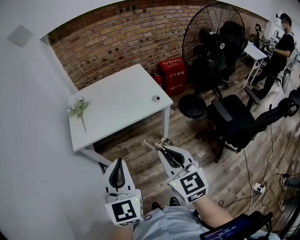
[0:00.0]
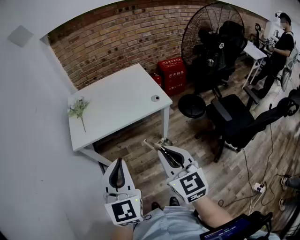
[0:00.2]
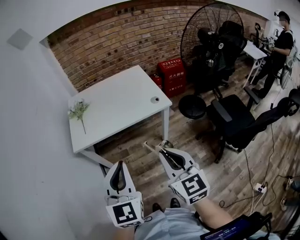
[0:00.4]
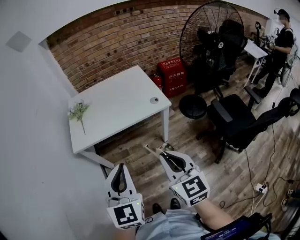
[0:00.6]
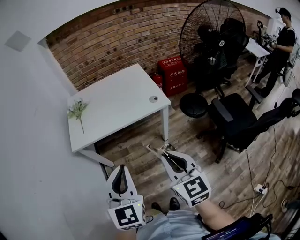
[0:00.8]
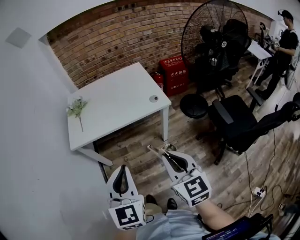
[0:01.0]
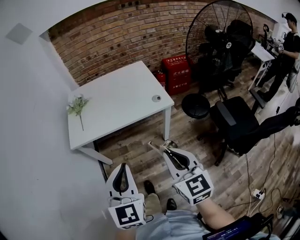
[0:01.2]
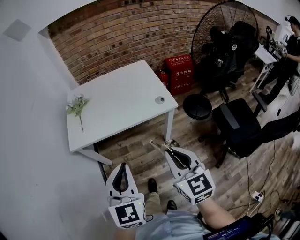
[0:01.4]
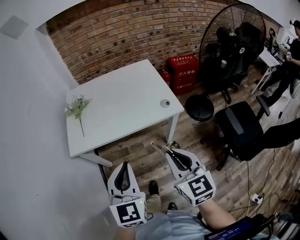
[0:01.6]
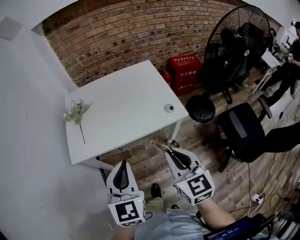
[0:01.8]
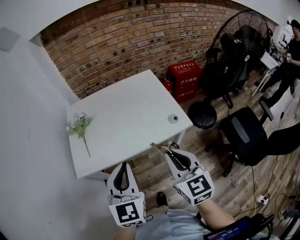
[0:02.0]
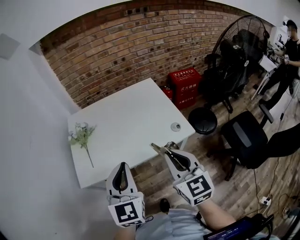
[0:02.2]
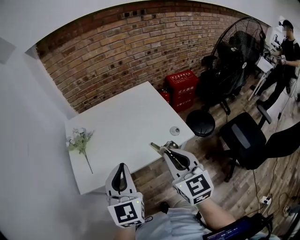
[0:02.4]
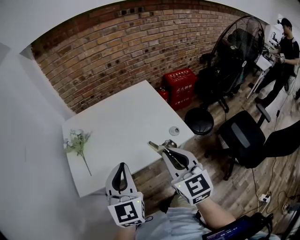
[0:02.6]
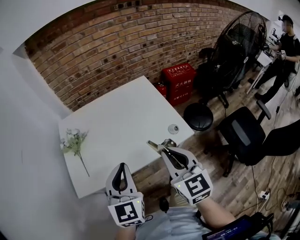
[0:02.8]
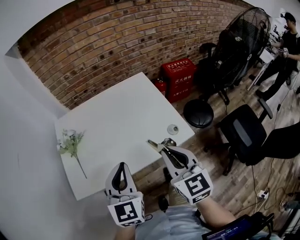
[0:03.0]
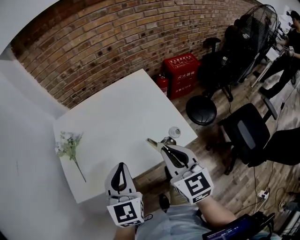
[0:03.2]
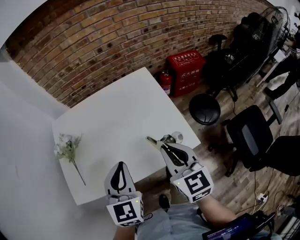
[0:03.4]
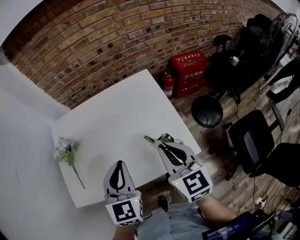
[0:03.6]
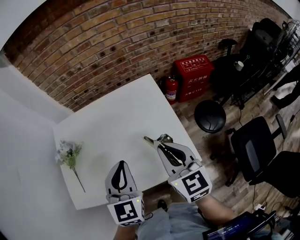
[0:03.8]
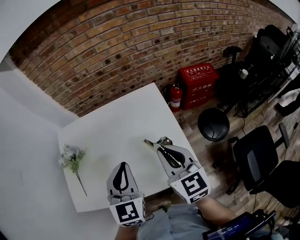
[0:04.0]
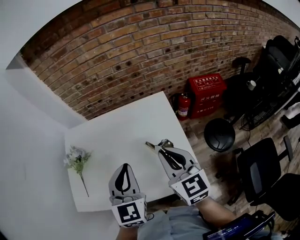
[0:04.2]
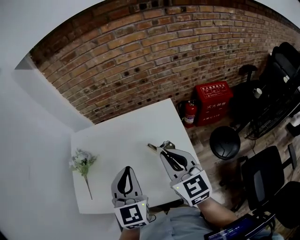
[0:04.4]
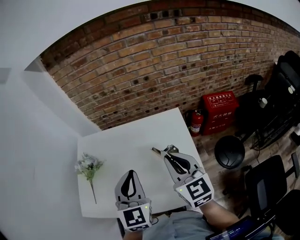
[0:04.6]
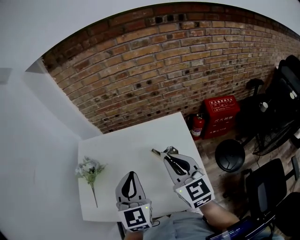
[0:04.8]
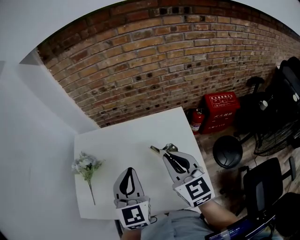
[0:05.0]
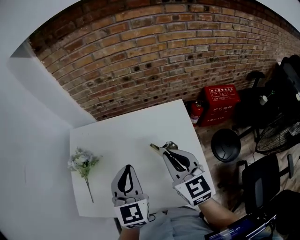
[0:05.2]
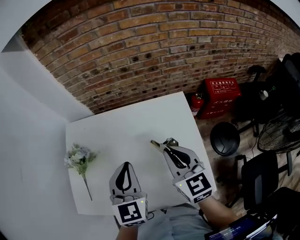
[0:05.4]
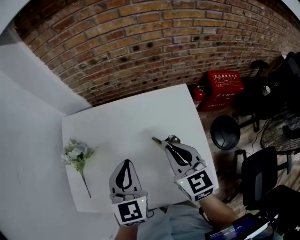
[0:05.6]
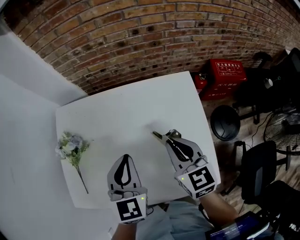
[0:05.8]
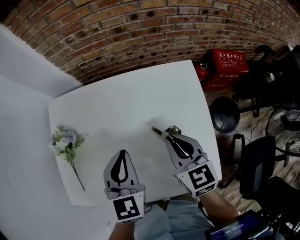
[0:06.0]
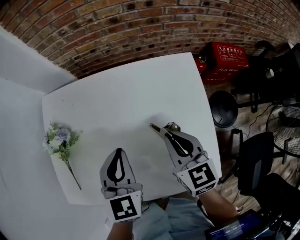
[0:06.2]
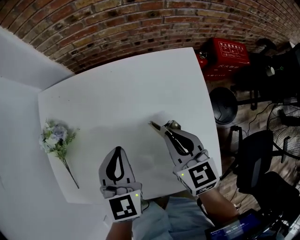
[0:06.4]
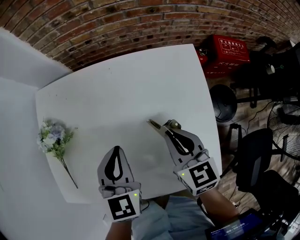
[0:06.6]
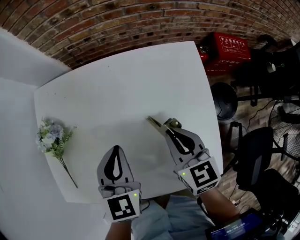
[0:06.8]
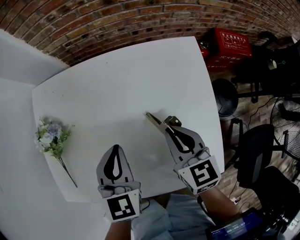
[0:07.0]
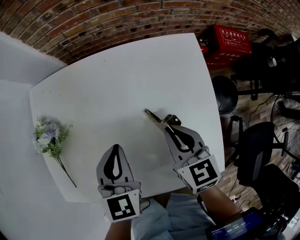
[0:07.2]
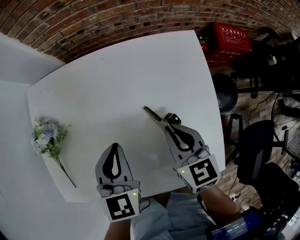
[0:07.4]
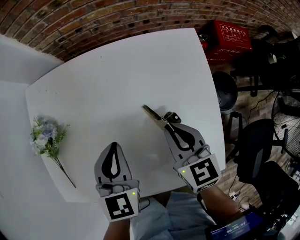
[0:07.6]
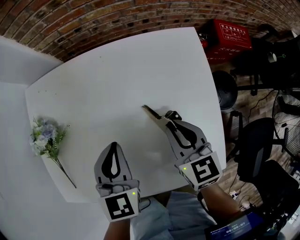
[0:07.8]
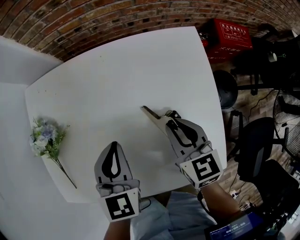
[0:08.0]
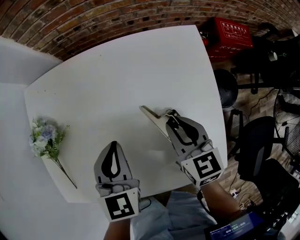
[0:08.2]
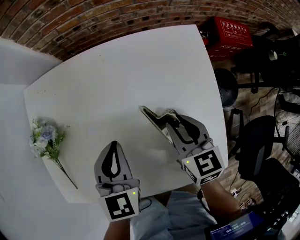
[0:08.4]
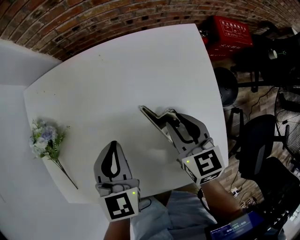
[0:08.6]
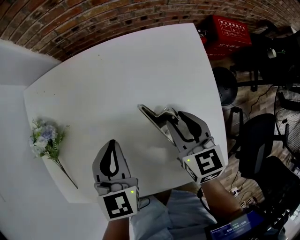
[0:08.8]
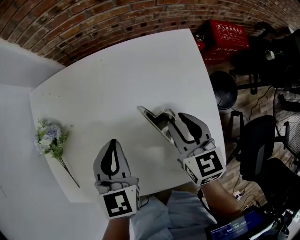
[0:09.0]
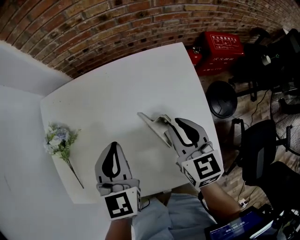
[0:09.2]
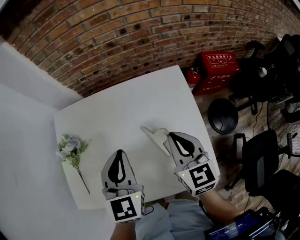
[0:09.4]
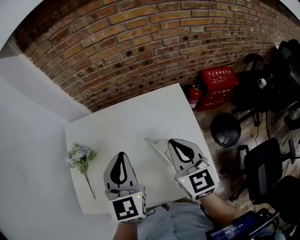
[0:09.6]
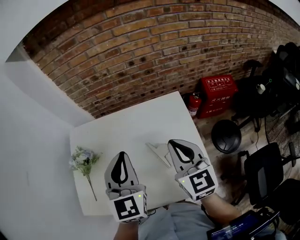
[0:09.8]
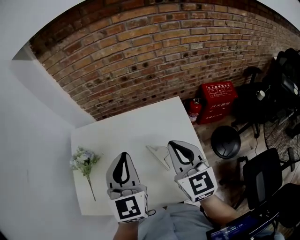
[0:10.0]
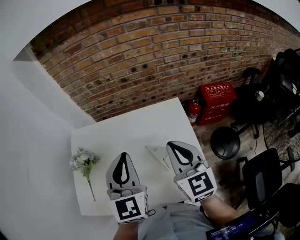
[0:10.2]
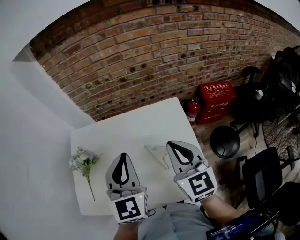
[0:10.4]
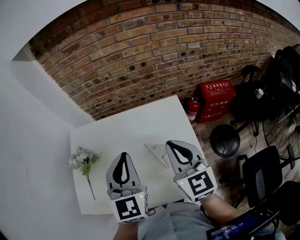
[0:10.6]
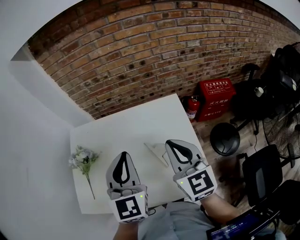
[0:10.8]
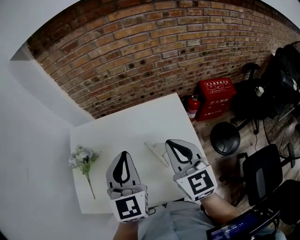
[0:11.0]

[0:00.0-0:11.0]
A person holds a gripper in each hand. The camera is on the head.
0:00.0 to 0:01.6: The right gripper travels forward by approximately 10 cm. The left gripper goes about 10 cm forward and downward.
0:01.6 to 0:03.2: The grippers both shift forward by roughly 25 cm.
0:03.2 to 0:04.8: The grippers both shift forward by about 20 cm.
0:04.8 to 0:06.2: The left gripper heads downward and forward, covering about 15 cm, and swivels some 20 degrees, while the right gripper is displaced downward by some 20 cm, and rotates some 20 degrees.
0:06.2 to 0:07.8: The two grippers go about 5 cm downward.
0:07.8 to 0:09.4: The grippers both shift upward by approximately 10 cm. The right gripper opens, then closes once more.
0:09.4 to 0:11.0: Both grippers travel together upward, roughly 10 cm.

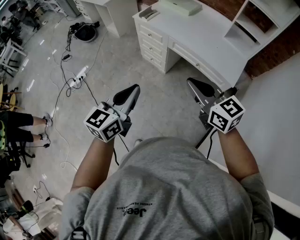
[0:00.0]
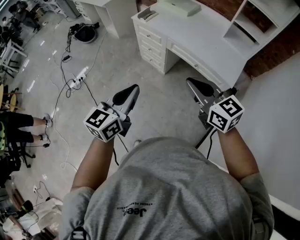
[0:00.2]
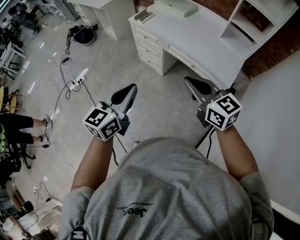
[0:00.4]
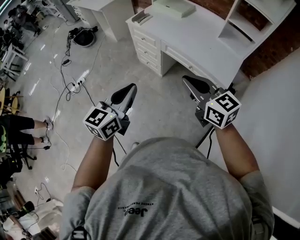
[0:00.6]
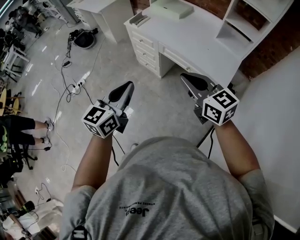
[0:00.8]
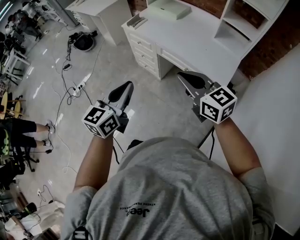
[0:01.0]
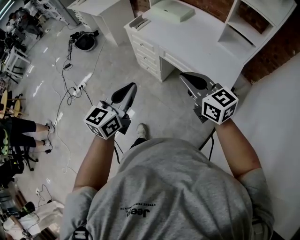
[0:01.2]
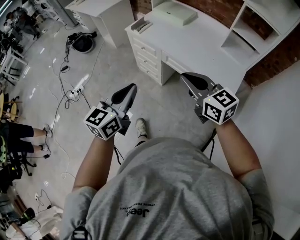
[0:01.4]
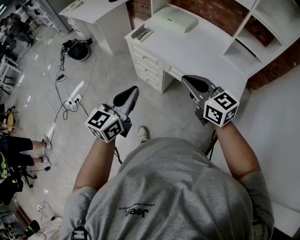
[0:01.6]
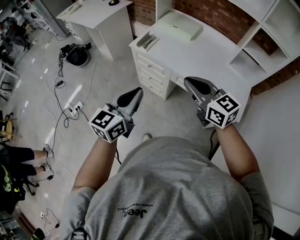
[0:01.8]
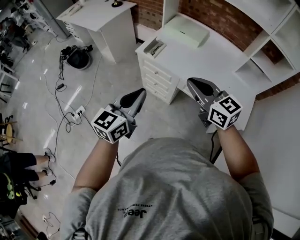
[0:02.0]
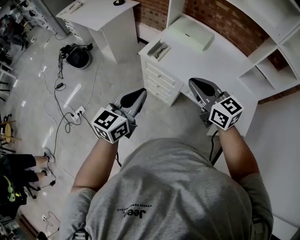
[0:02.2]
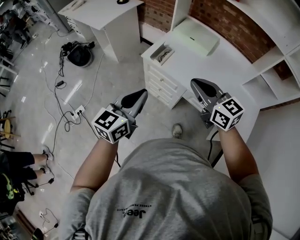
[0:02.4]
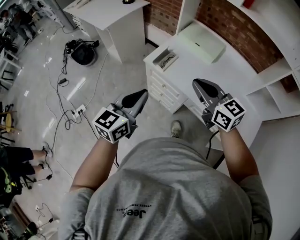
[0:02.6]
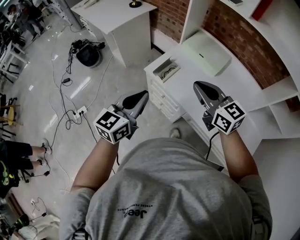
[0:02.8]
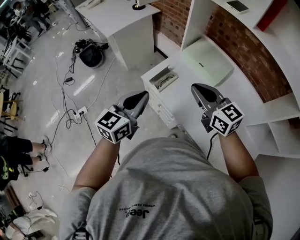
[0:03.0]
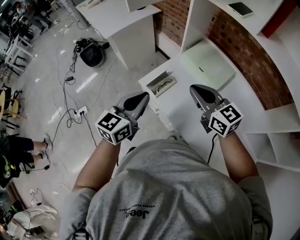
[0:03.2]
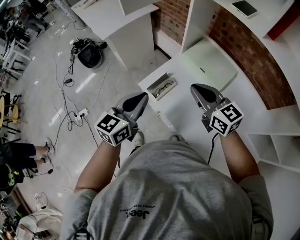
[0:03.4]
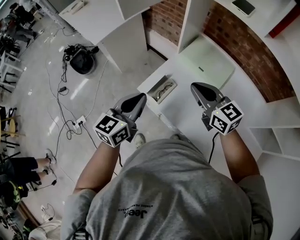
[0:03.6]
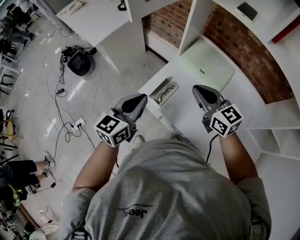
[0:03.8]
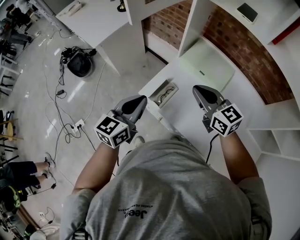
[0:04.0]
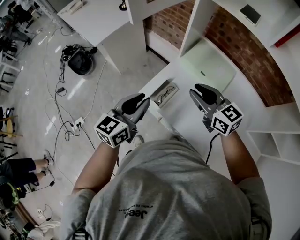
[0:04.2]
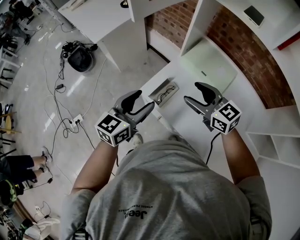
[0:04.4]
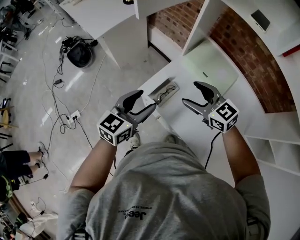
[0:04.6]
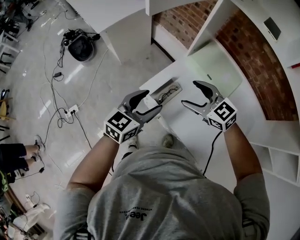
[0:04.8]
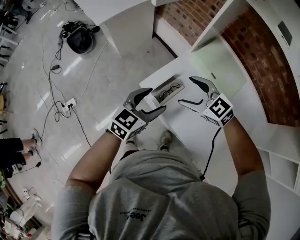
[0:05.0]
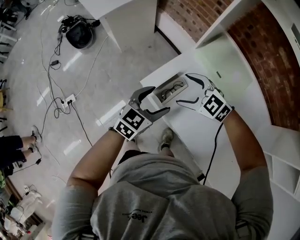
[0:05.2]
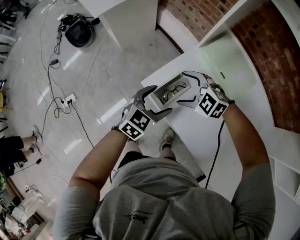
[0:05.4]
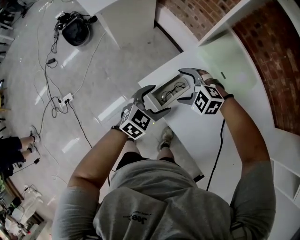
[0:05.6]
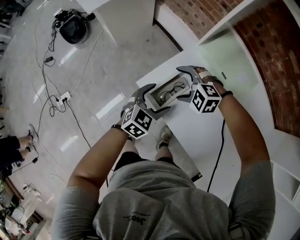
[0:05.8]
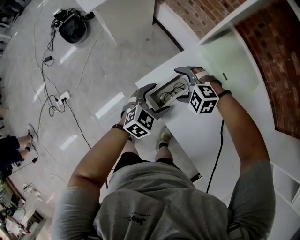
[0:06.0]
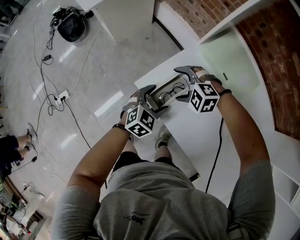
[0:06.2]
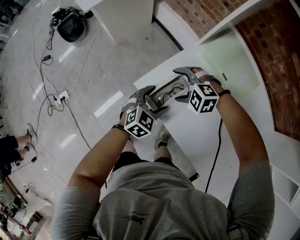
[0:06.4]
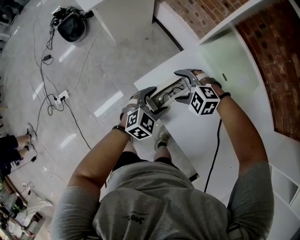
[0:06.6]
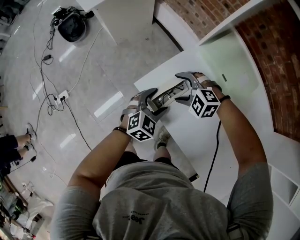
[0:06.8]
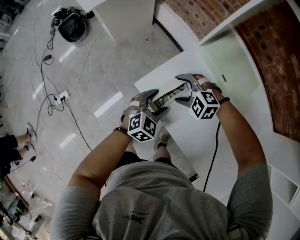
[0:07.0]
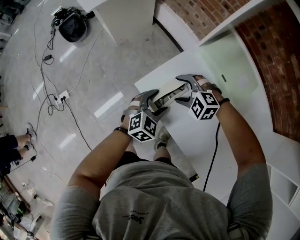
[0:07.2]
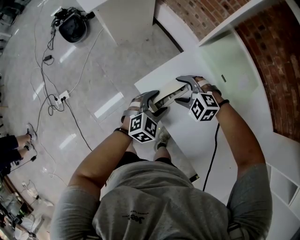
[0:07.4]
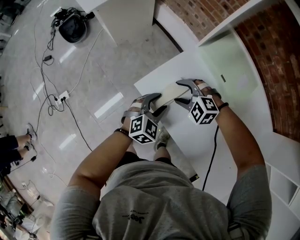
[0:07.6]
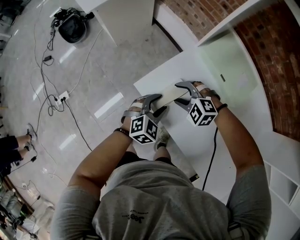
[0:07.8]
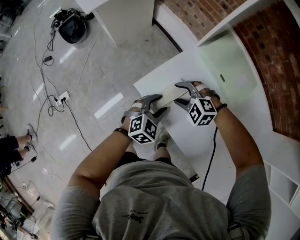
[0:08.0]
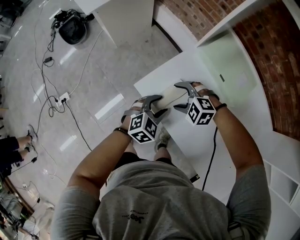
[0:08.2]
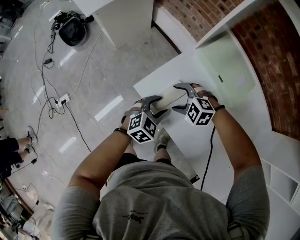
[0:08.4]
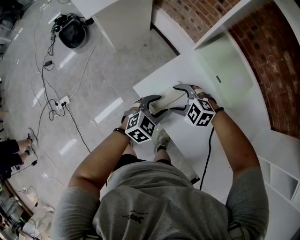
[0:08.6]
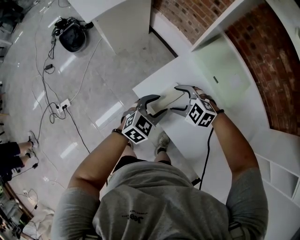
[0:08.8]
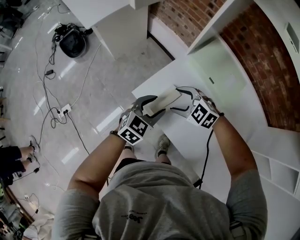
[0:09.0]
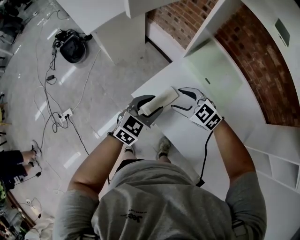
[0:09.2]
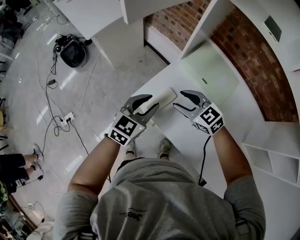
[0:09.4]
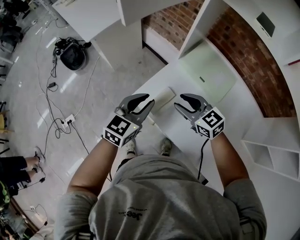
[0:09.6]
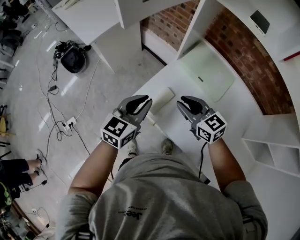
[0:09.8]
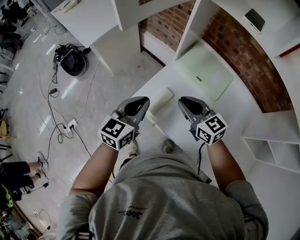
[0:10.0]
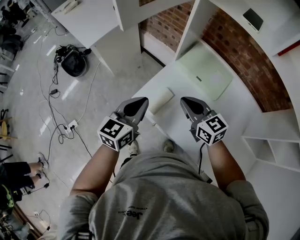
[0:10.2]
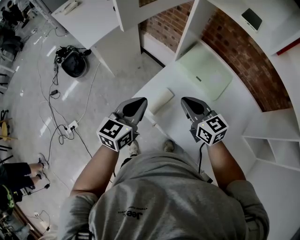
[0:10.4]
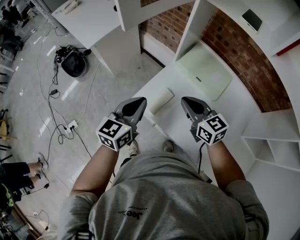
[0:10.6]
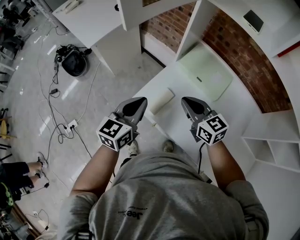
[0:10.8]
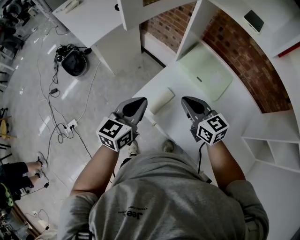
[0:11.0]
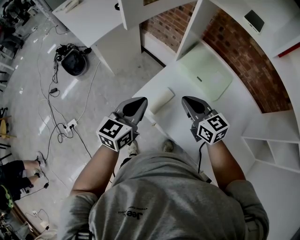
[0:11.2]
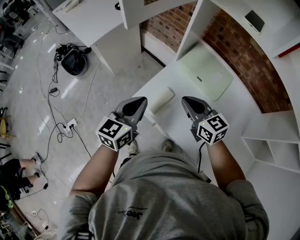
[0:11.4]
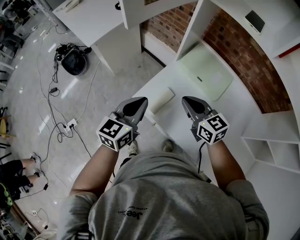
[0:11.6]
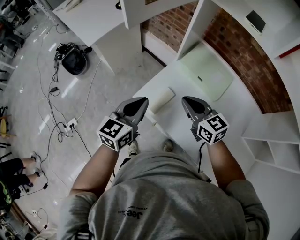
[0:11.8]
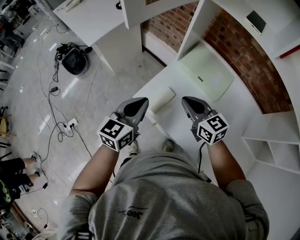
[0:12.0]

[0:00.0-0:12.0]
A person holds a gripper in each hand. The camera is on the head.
0:00.0 to 0:01.6: The grippers both shift forward by about 20 cm.
0:01.6 to 0:03.0: The two grippers travel together, forward, approximately 40 cm.
0:03.0 to 0:04.4: The right gripper heads forward and downward, covering some 15 cm, and opens up. Meanwhile the left gripper is displaced forward by about 10 cm, and opens up.
0:04.4 to 0:06.0: Both grippers move downward, roughly 25 cm. The left gripper rotates some 30 degrees, and opens its fingers. The right gripper points its fingers about 40 degrees further downward, and opens its fingers.
0:06.0 to 0:07.6: The left gripper closes its fingers. The right gripper closes up.
0:07.6 to 0:09.0: Both grippers move upward, roughly 10 cm. The right gripper rotates about 20 degrees.
0:09.0 to 0:10.4: The grippers both shift upward by approximately 15 cm. The right gripper rotates roughly 50 degrees, and closes its fingers. The left gripper turns by approximately 20 degrees, and closes its fingers.
0:10.4 to 0:12.0: Both grippers stay put.

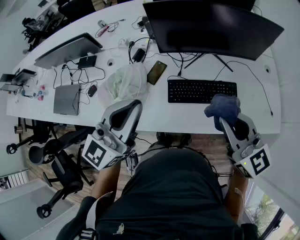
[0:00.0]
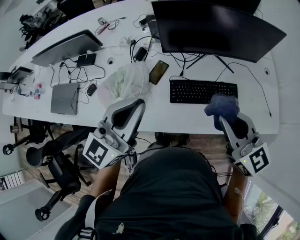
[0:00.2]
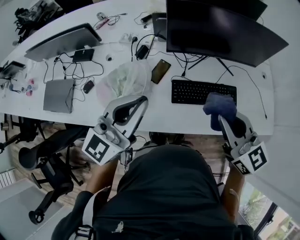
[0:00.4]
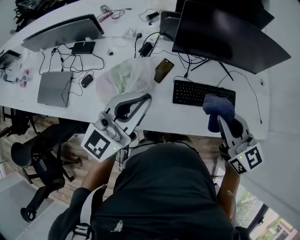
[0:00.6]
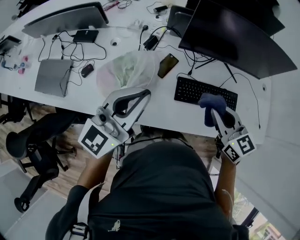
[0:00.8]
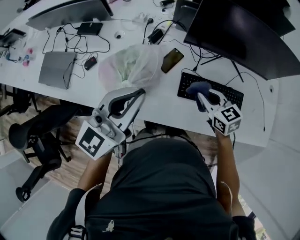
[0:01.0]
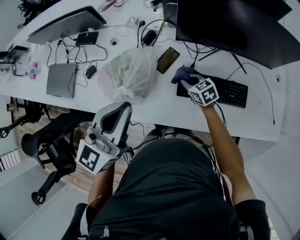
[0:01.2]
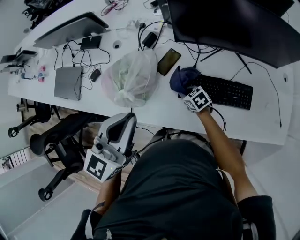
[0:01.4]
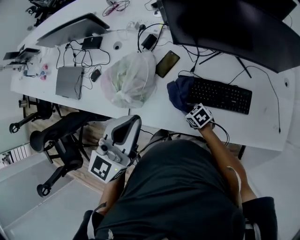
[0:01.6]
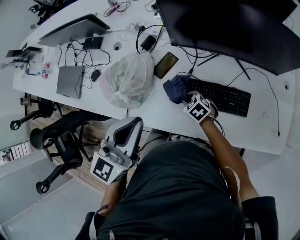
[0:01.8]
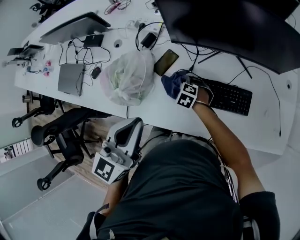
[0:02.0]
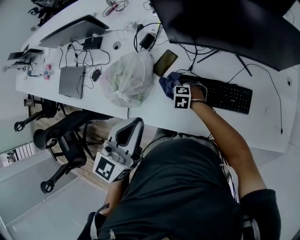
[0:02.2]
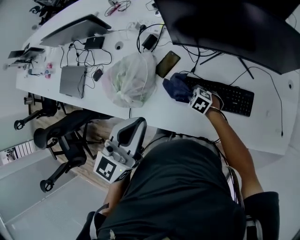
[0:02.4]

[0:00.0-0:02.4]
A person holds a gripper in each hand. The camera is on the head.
0:00.0 to 0:01.2: The left gripper travels to the left and downward by roughly 10 cm, while the right gripper shifts about 40 cm downward, forward and to the left, and tips its fingers downward by about 40 degrees.
0:01.2 to 0:02.4: The left gripper goes some 10 cm to the right, while the right gripper goes forward and backward, roughly 15 cm each way, reversing 2 times, swivels roughly 30 degrees, and opens, then closes again.
